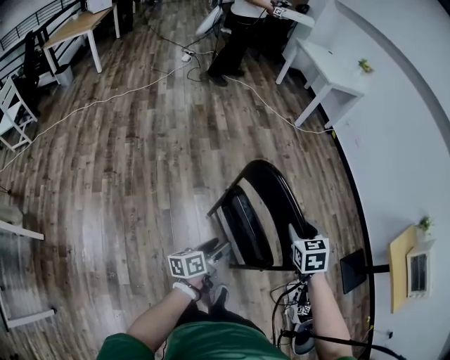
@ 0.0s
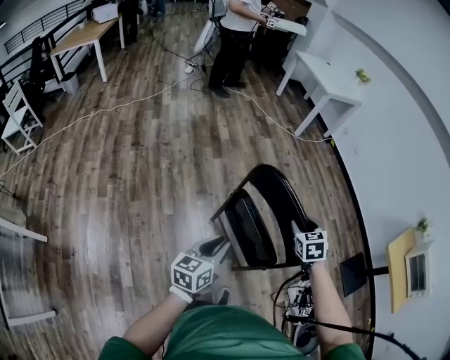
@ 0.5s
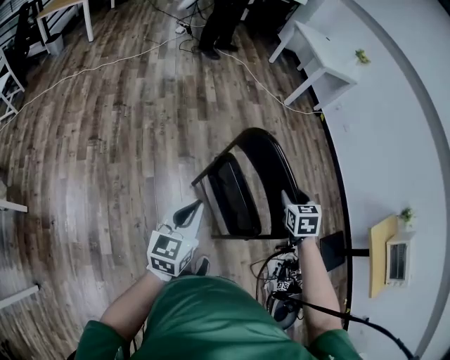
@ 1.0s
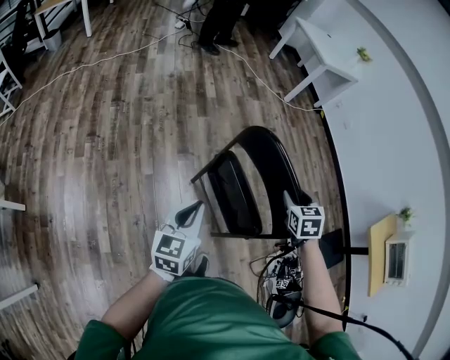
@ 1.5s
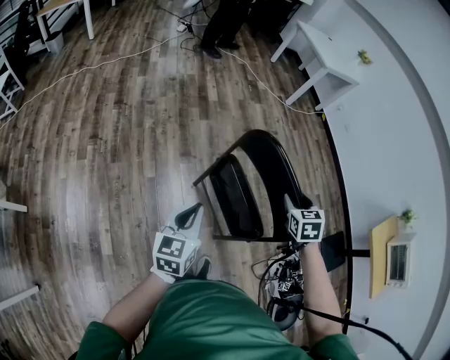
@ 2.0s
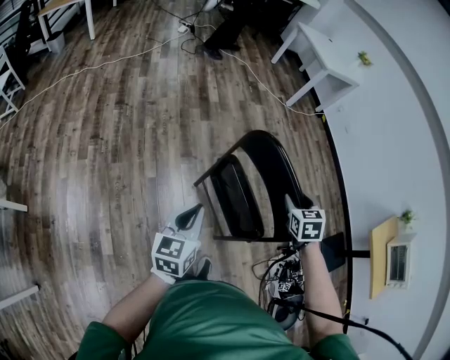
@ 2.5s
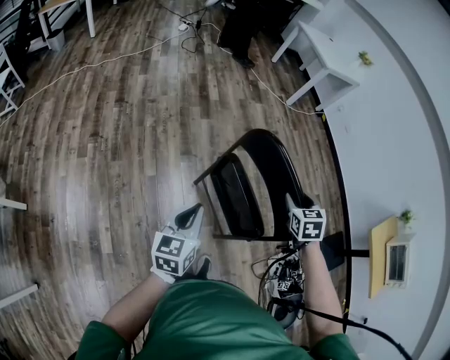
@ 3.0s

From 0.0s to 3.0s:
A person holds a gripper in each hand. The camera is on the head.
From 0.0s to 1.5s: The left gripper travels upward and to the left by some 15 cm, turns by some 40 degrees, and closes.
From 1.5s to 3.0s: The grippers stay close to where they were, moving slightly.

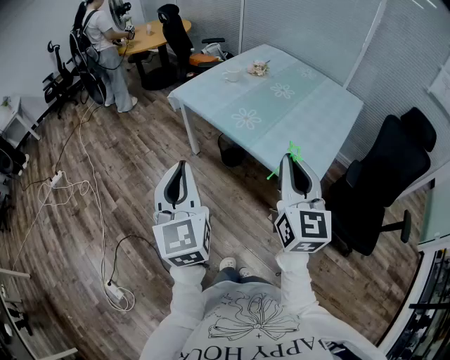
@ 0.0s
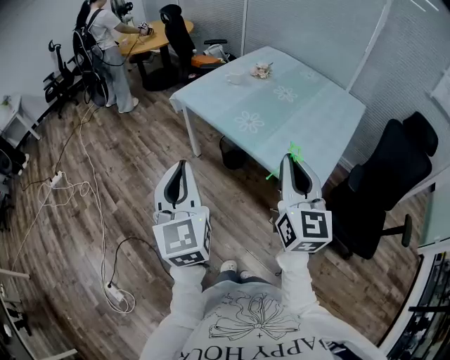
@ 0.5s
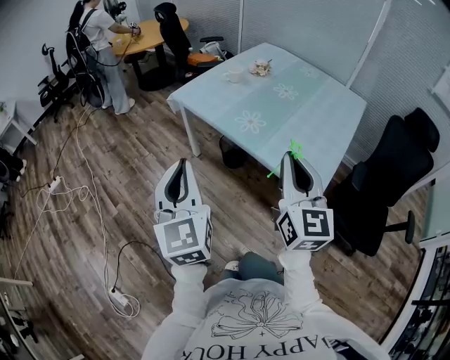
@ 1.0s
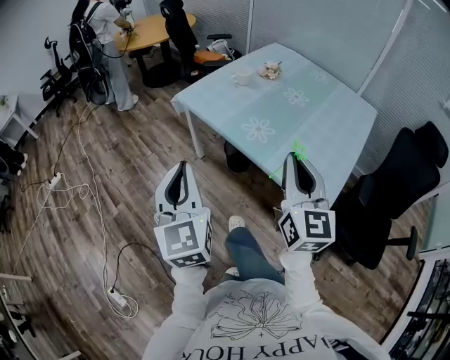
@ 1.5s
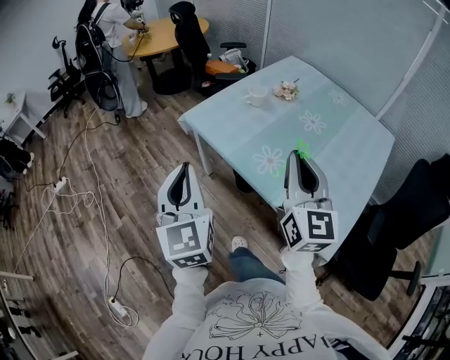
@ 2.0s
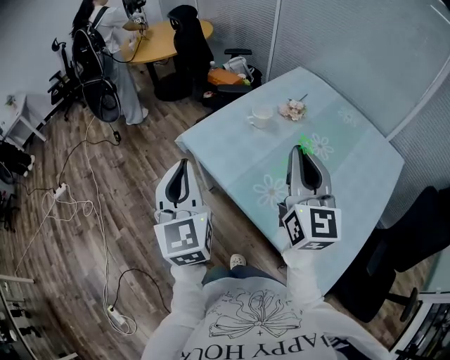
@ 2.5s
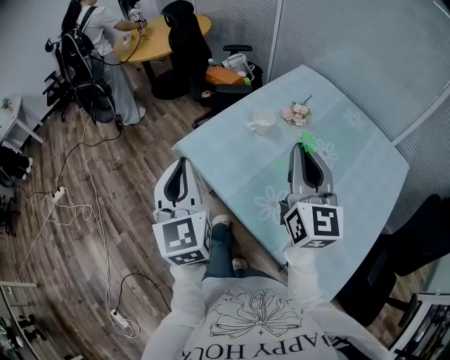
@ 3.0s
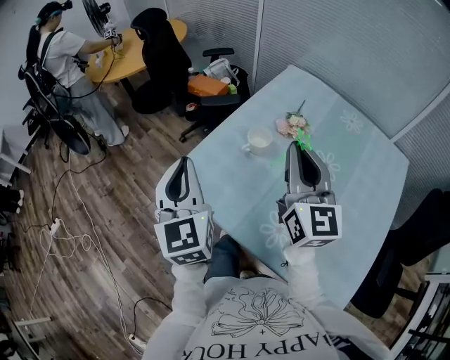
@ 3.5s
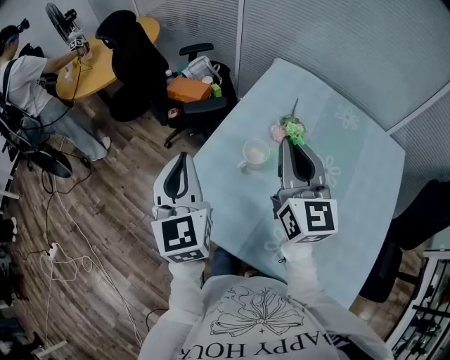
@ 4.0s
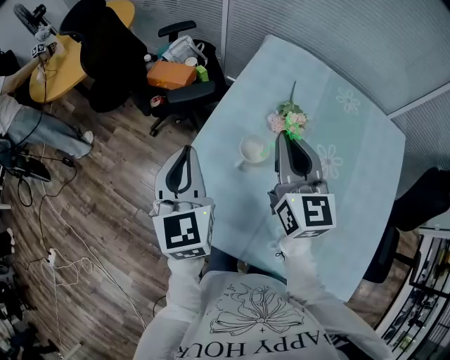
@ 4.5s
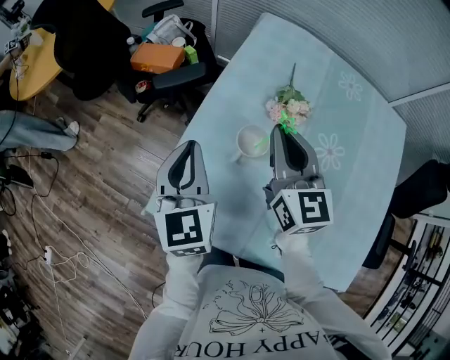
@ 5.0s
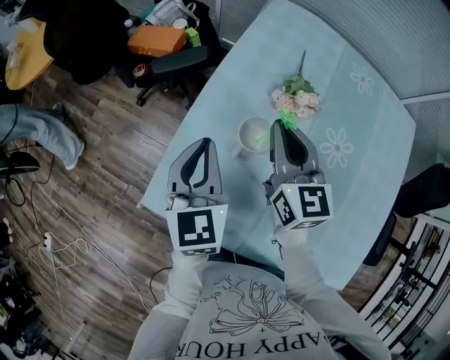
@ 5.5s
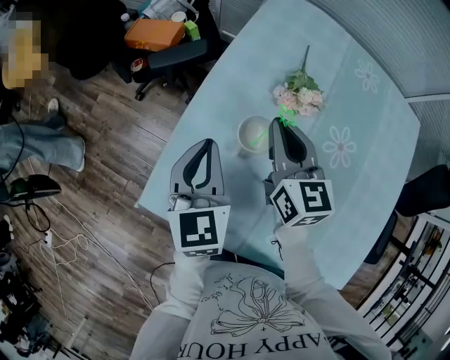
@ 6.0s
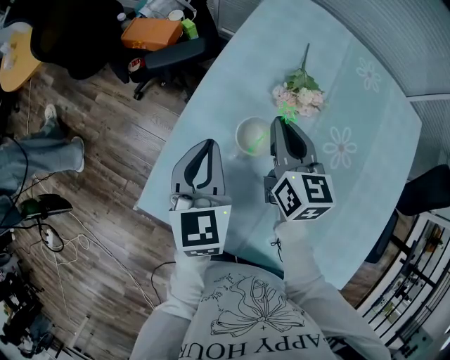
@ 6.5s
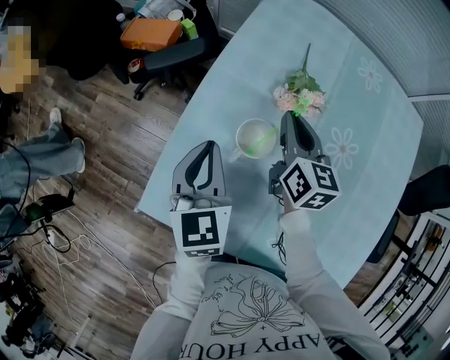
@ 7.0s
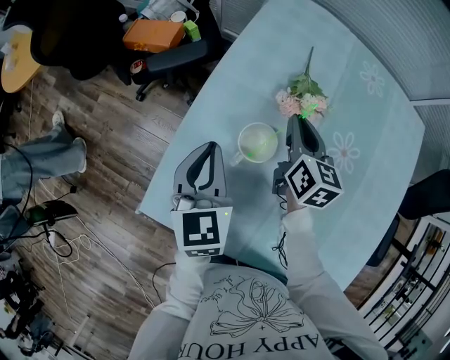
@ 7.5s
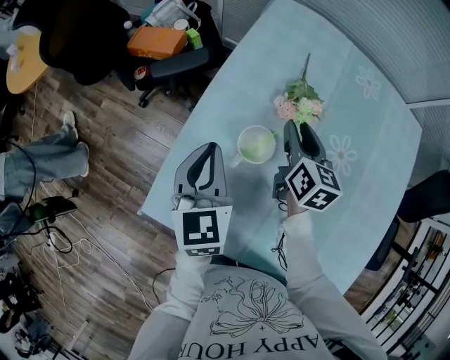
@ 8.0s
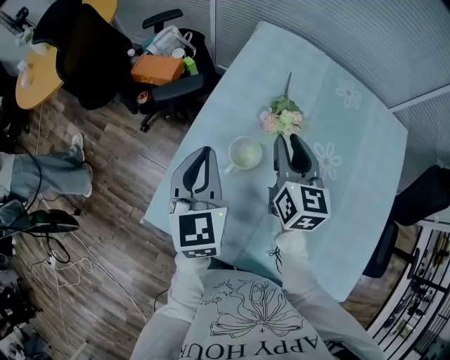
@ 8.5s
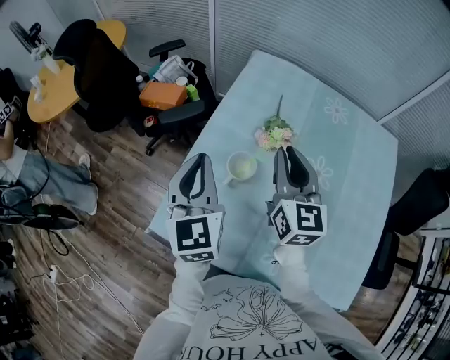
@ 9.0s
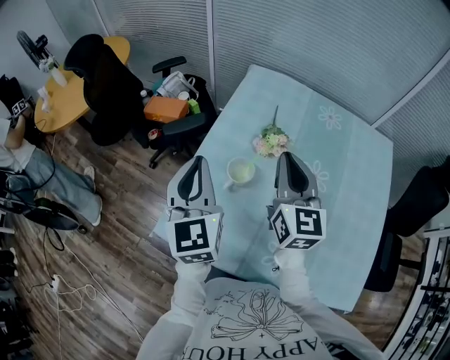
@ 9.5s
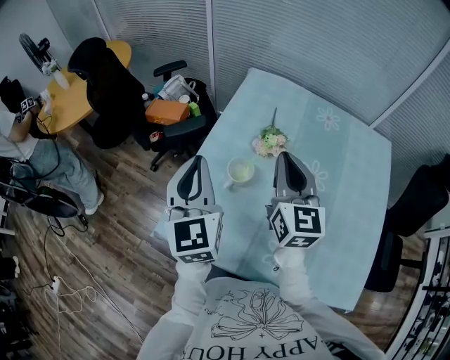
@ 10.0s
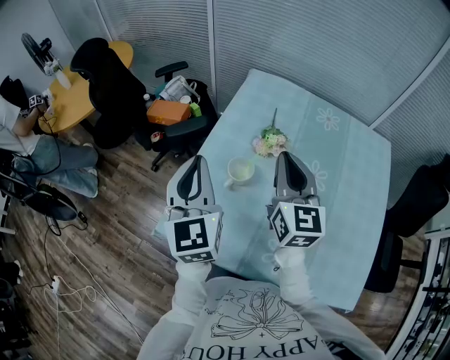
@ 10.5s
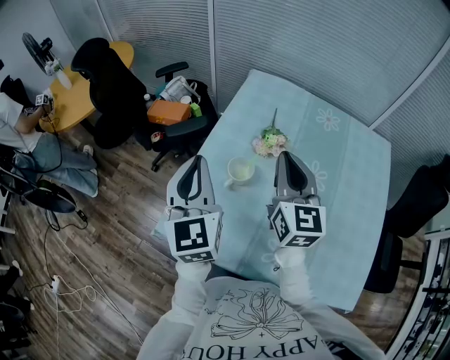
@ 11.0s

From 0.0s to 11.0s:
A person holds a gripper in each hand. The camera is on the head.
From 0.0s to 2.0s: Both grippers travel together forward, roughly 30 cm.
From 2.0s to 3.5s: The grippers both shift forward by approximately 40 cm.
From 3.5s to 5.5s: Both grippers travel together forward and downward, about 30 cm. The left gripper changes its angle by approximately 30 degrees. Meanwhile the right gripper turns by about 20 degrees.
From 5.5s to 7.5s: The left gripper moves approximately 5 cm. The right gripper goes some 15 cm downward, to the right and forward, and rotates roughly 20 degrees.
From 7.5s to 9.0s: The left gripper goes roughly 15 cm upward. Meanwhile the right gripper goes some 20 cm upward and backward, swivels some 20 degrees, and opens, then closes again.
From 9.0s to 11.0s: The right gripper moves backward, some 5 cm. Meanwhile the left gripper goes roughly 5 cm upward.

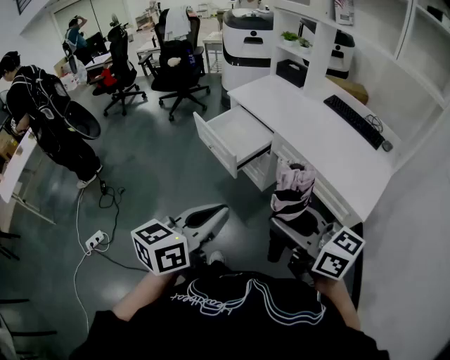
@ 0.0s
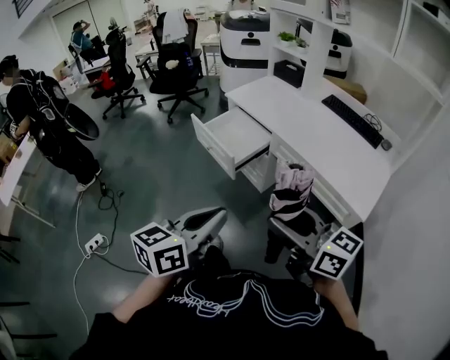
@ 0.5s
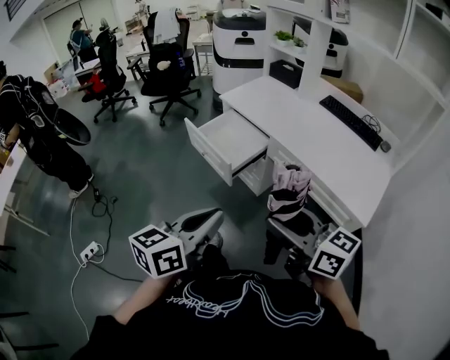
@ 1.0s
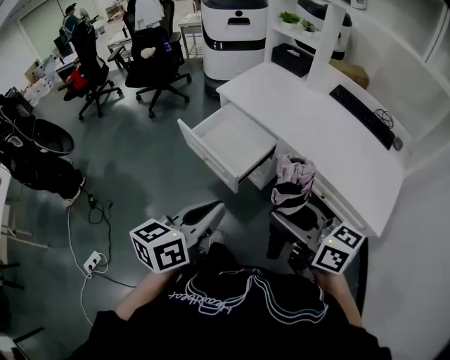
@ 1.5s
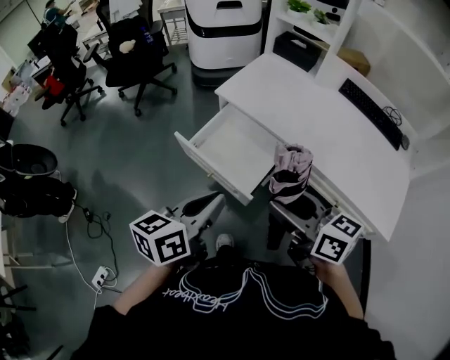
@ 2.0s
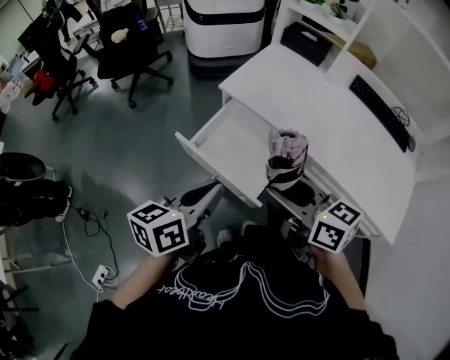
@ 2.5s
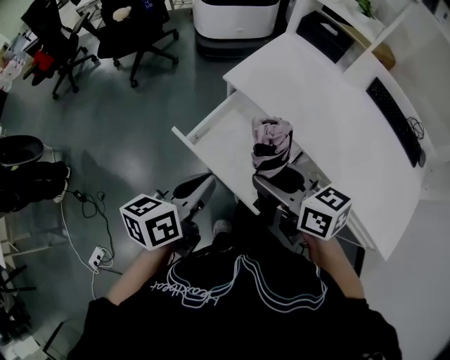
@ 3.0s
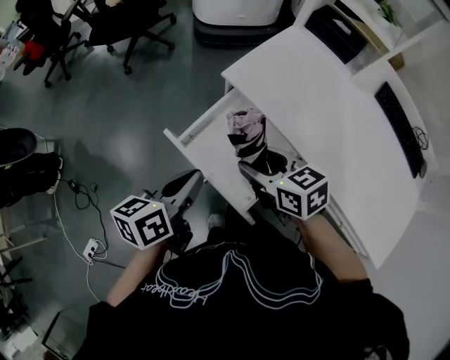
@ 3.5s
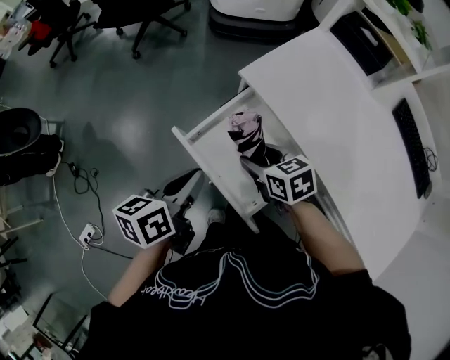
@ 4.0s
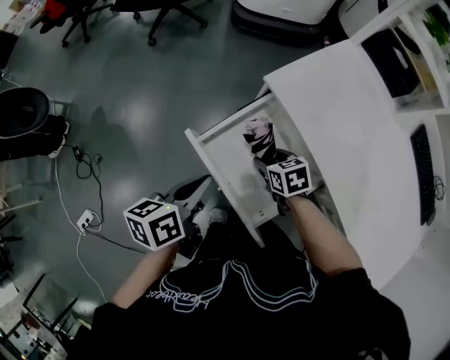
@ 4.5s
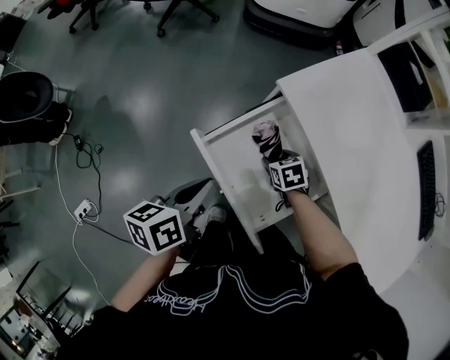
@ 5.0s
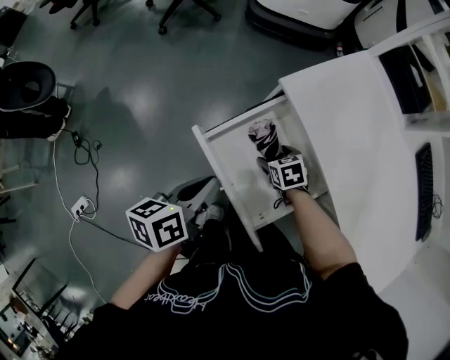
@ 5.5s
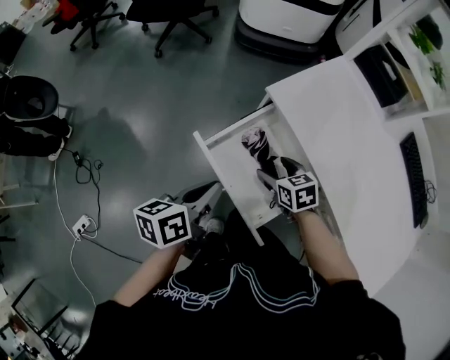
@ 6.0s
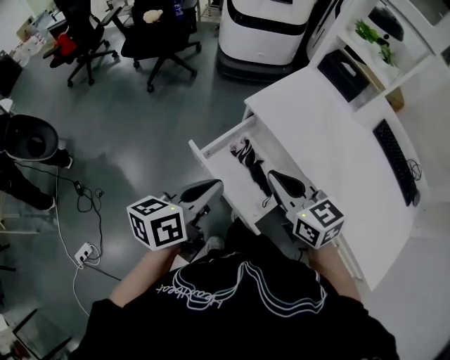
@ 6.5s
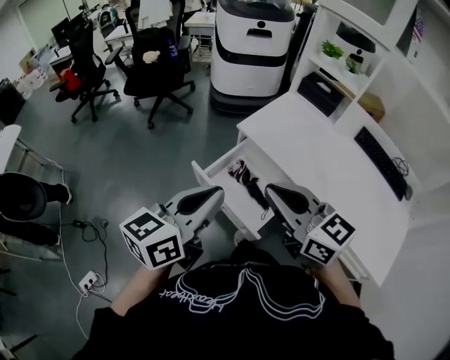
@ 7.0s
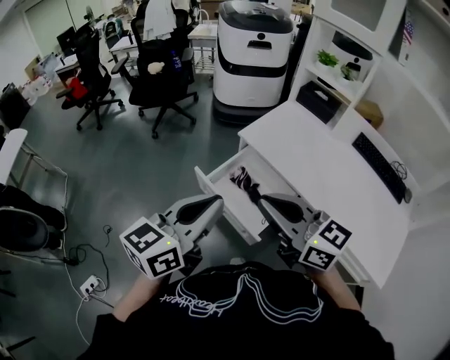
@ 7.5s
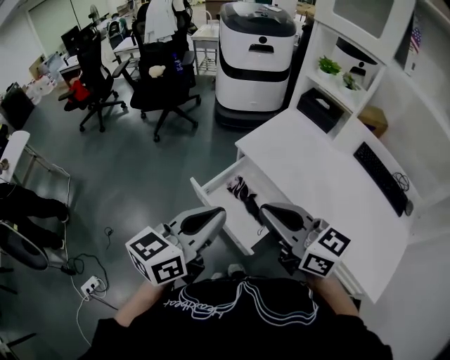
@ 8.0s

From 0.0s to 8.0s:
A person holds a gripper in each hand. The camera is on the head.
From 0.0s to 2.0s: The two grippers go approximately 30 cm forward.
From 2.0s to 4.0s: The left gripper is displaced forward and downward by roughly 25 cm, and swivels some 30 degrees. Meanwhile the right gripper goes roughly 35 cm forward and downward, and tilts its fingers approximately 30 degrees downward.
From 4.0s to 6.0s: The right gripper goes downward and returns, some 20 cm each way.
From 6.0s to 8.0s: The right gripper shifts some 40 cm upward and backward, points its fingers some 50 degrees further upward, and closes up. The left gripper moves upward, approximately 25 cm, and turns by approximately 40 degrees.

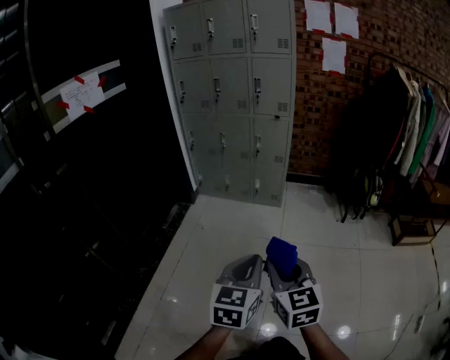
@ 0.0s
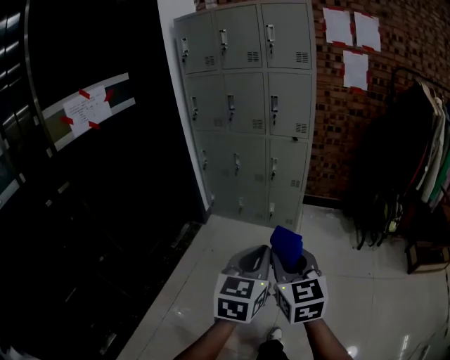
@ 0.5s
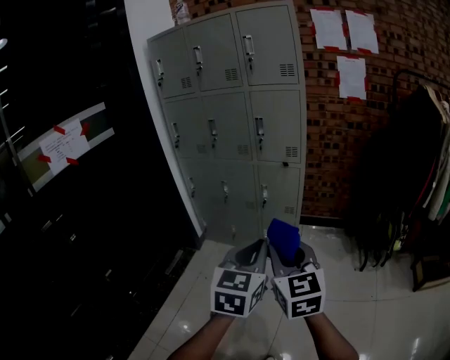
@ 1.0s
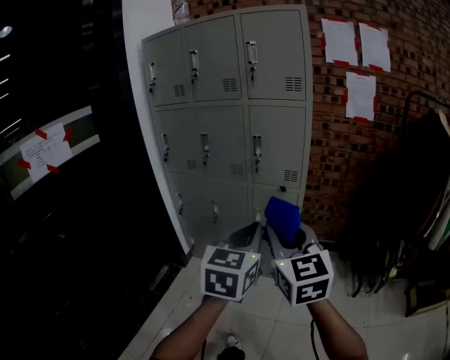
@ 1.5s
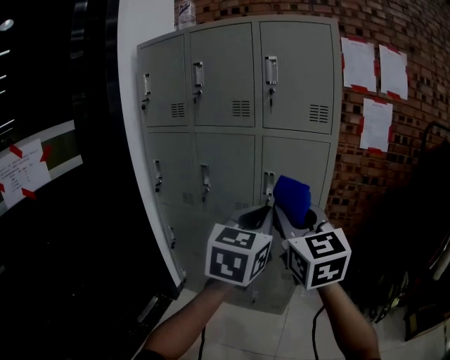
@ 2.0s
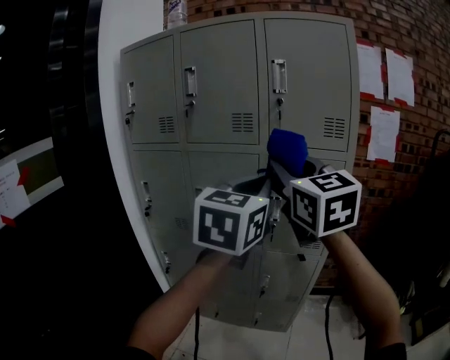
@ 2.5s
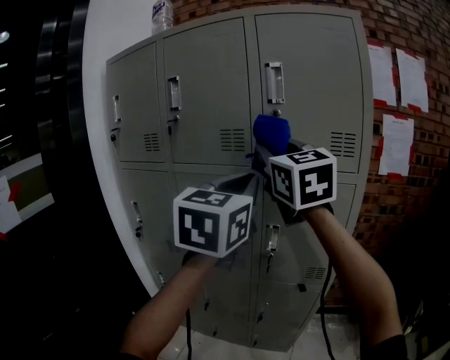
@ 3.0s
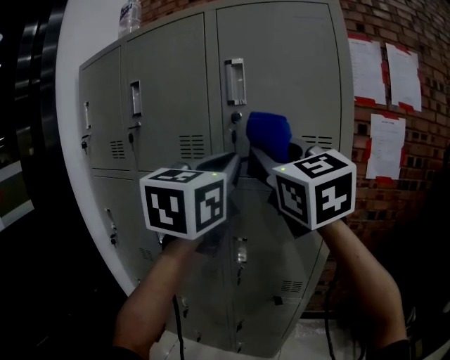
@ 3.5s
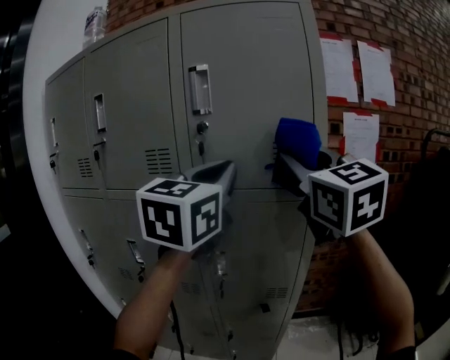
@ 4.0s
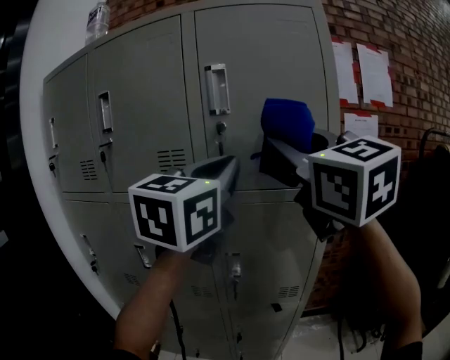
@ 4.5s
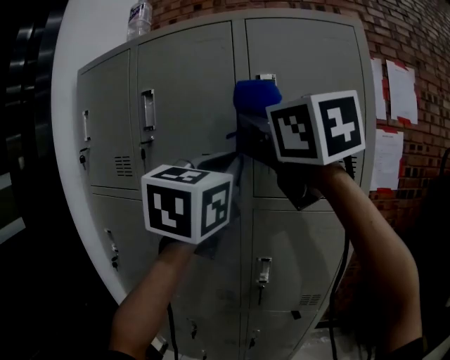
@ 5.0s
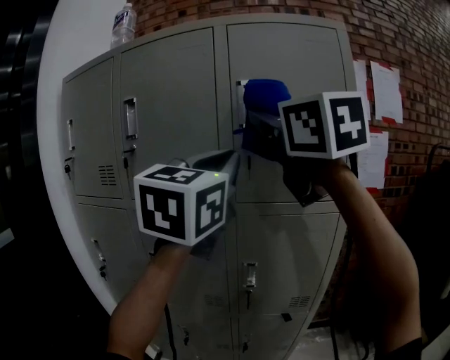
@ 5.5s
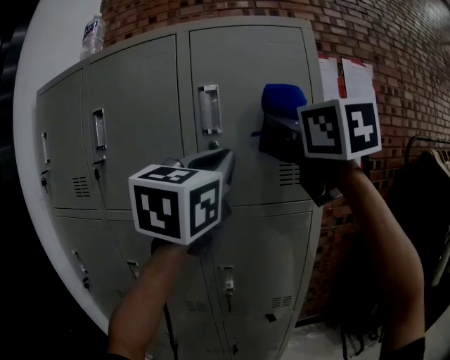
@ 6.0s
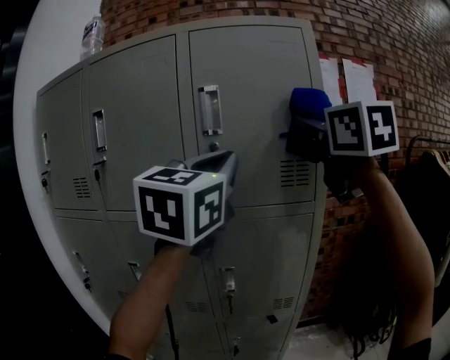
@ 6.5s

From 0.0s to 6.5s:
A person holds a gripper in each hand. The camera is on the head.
From 0.0s to 2.0s: The pair of grippers is taken forward, approximately 70 cm. The right gripper turns by roughly 20 degrees.
From 2.0s to 4.5s: The two grippers go some 35 cm forward and upward.
From 4.5s to 6.5s: The left gripper reaches about 10 cm to the left, then returns. Meanwhile the right gripper moves to the right and upward, roughly 10 cm.
